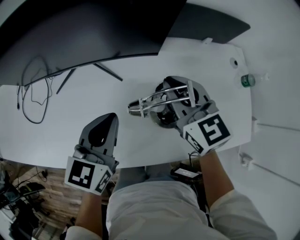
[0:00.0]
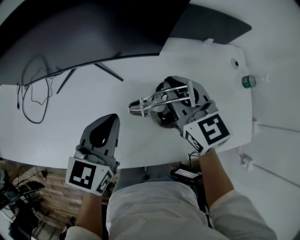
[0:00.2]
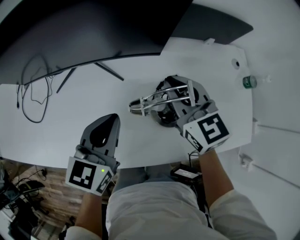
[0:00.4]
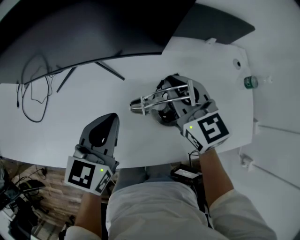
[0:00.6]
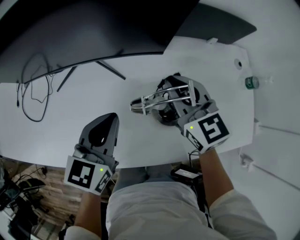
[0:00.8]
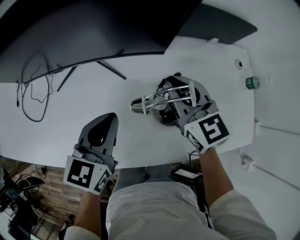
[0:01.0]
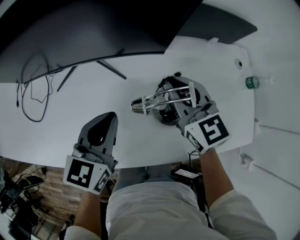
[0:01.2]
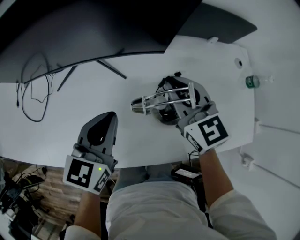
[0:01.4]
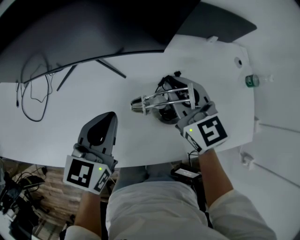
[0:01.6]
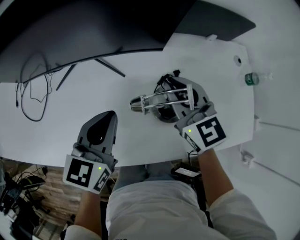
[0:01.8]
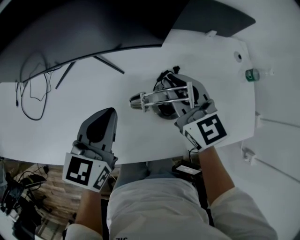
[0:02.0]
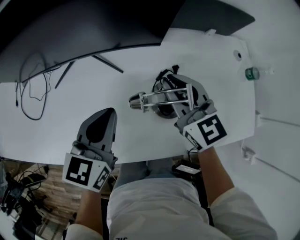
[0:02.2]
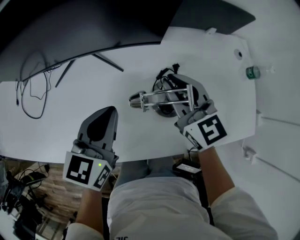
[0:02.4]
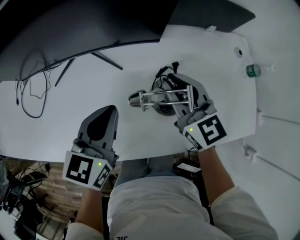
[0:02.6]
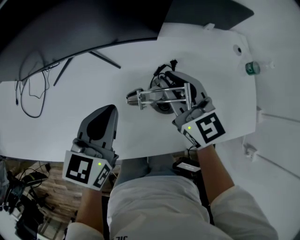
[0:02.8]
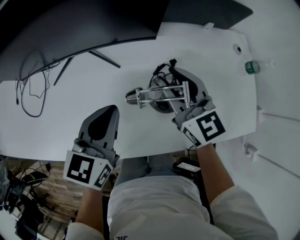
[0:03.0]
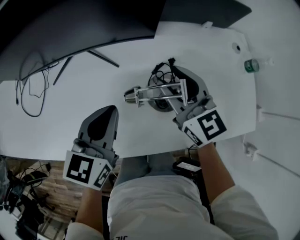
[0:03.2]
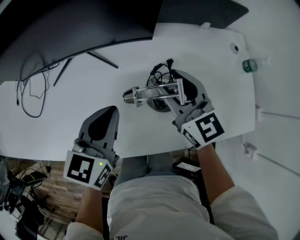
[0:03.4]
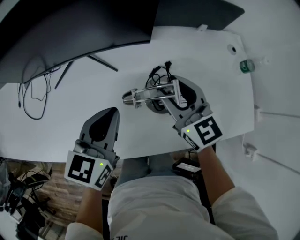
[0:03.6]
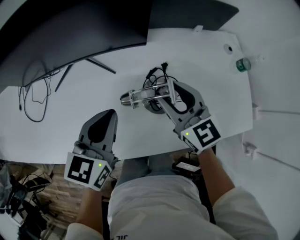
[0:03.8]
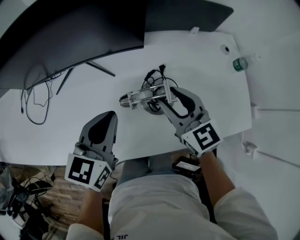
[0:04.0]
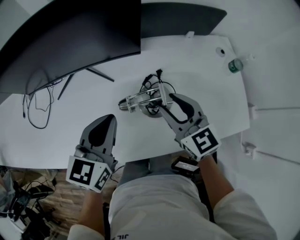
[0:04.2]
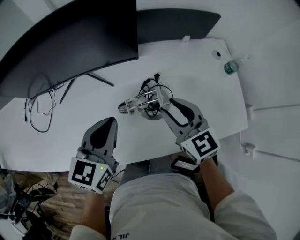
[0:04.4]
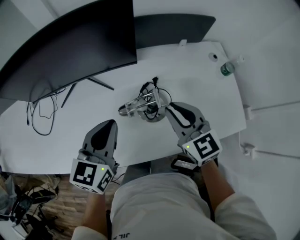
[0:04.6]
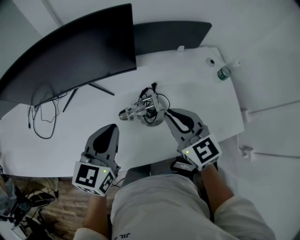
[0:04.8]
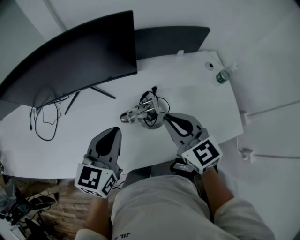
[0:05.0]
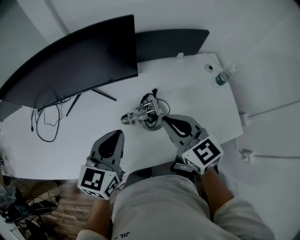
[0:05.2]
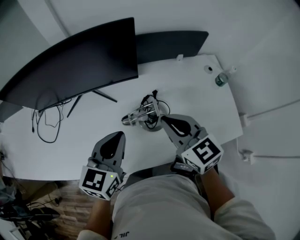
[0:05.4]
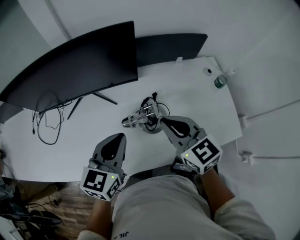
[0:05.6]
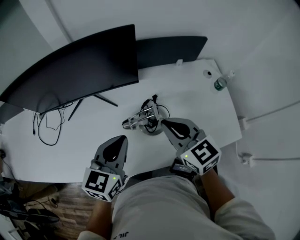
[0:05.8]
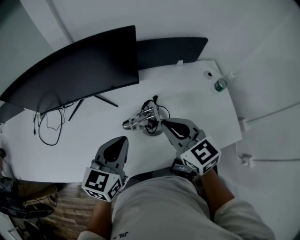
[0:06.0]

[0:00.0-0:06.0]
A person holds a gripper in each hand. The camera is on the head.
0:00.0 to 0:03.0: There are only small adjustments of the grippers.
0:03.0 to 0:04.4: The left gripper ends up roughly 5 cm from where it was. The right gripper heads backward and to the right, covering approximately 10 cm.
0:04.4 to 0:06.0: The right gripper shifts about 5 cm upward, and closes.

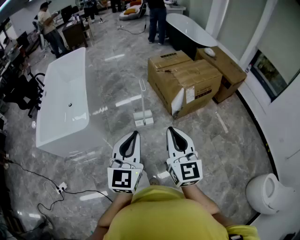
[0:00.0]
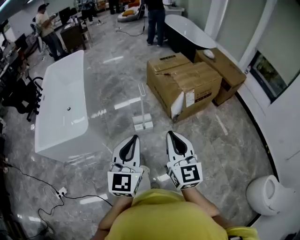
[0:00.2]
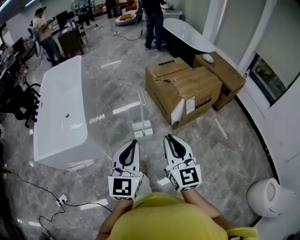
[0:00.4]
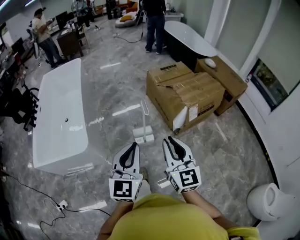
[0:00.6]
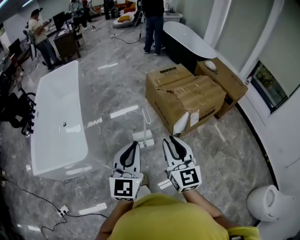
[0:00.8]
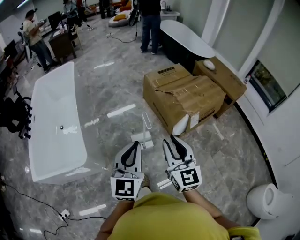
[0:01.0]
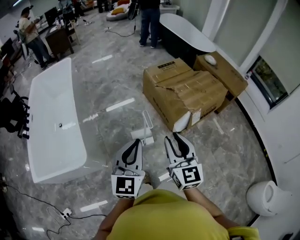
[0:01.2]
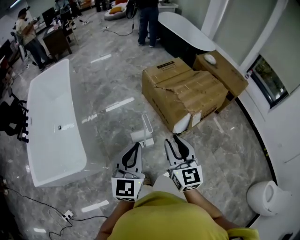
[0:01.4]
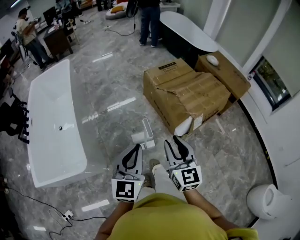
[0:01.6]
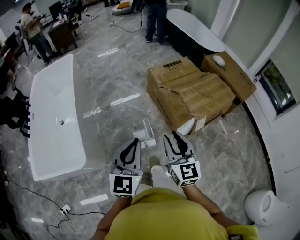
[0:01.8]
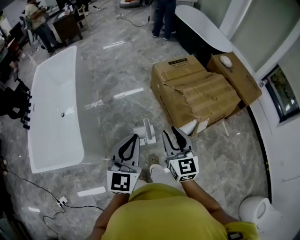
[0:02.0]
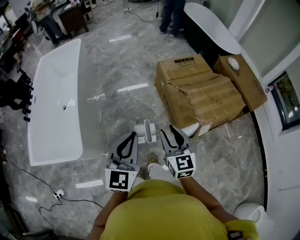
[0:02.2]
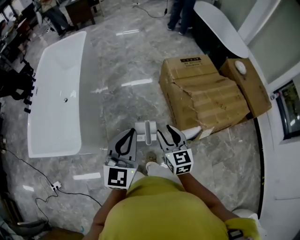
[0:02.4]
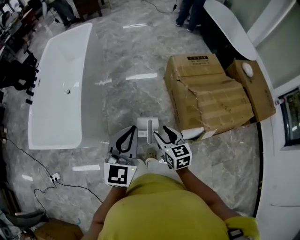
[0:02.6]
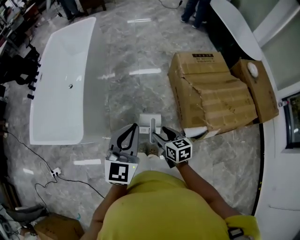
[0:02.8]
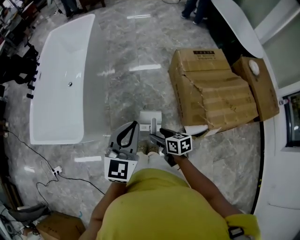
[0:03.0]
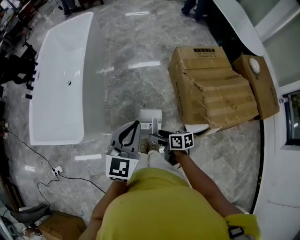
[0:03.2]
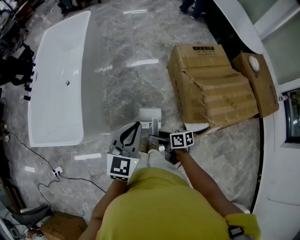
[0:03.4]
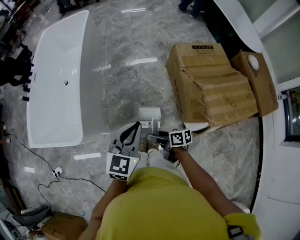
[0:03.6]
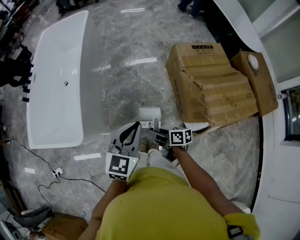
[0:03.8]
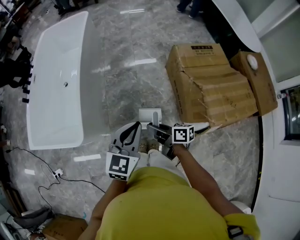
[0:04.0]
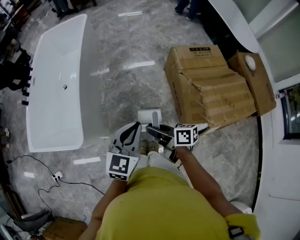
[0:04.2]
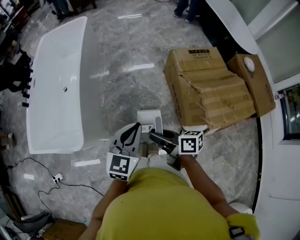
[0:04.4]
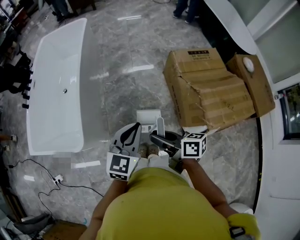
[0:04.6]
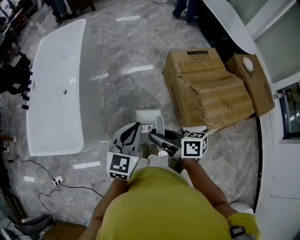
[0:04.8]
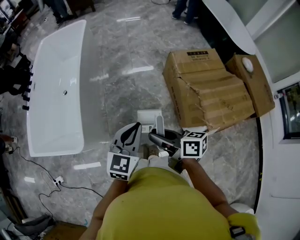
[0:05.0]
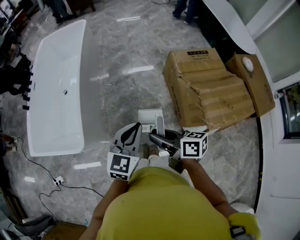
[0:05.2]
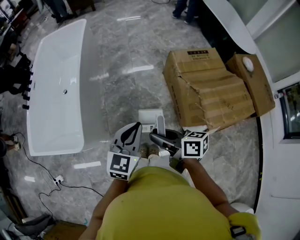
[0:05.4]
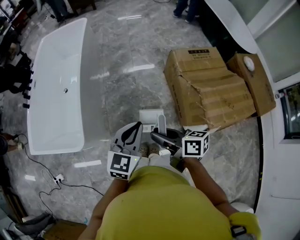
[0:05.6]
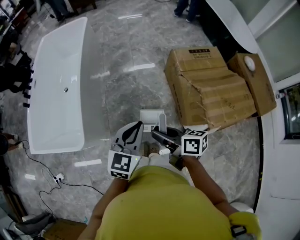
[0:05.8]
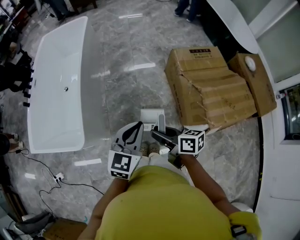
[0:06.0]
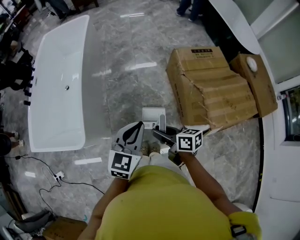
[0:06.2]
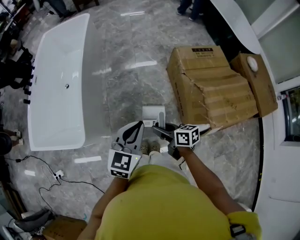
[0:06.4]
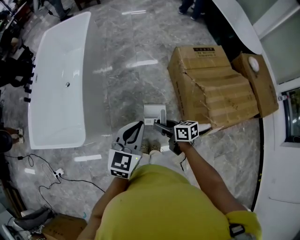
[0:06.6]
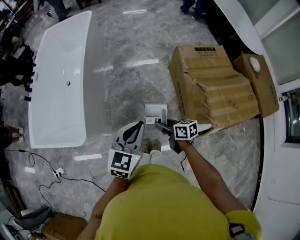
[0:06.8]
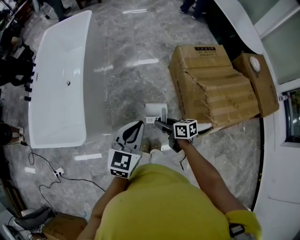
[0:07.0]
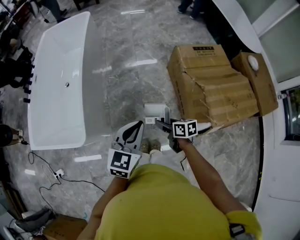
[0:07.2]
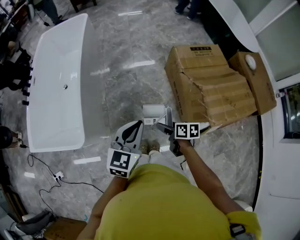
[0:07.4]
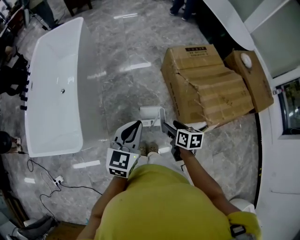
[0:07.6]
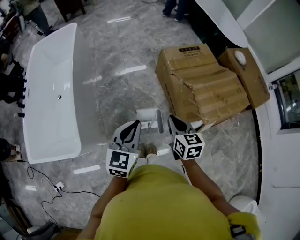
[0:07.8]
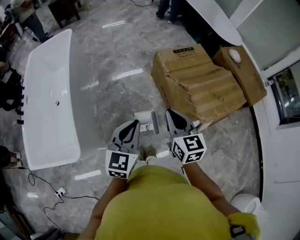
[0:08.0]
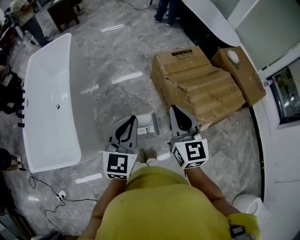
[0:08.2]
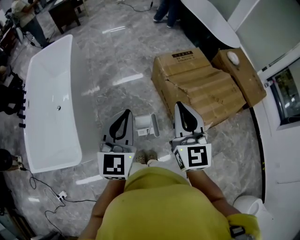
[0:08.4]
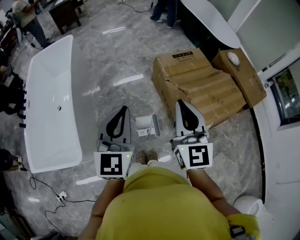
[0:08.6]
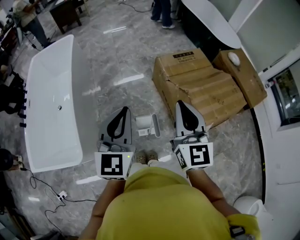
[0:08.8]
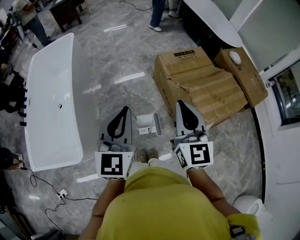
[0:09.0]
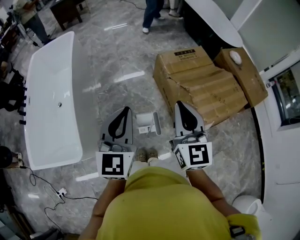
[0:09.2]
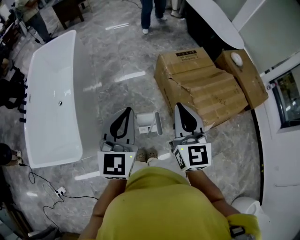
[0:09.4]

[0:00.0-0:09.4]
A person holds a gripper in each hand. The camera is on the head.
0:00.0 to 0:01.6: Both grippers travel together forward, some 30 cm. The right gripper opens its fingers.
0:01.6 to 0:03.2: The right gripper shifts roughly 25 cm downward, rotates about 80 degrees, and opens. Meanwhile the left gripper ends up some 20 cm from where it was.
0:03.2 to 0:04.8: The right gripper moves upward, roughly 20 cm, and closes up.
0:04.8 to 0:06.2: The right gripper shifts about 10 cm downward.
0:06.2 to 0:07.8: The right gripper is displaced to the right by some 10 cm, reaches roughly 10 cm downward, then returns, changes its angle by some 50 degrees, and opens and closes again.
0:07.8 to 0:09.4: The right gripper shifts roughly 20 cm upward, and changes its angle by approximately 30 degrees. The left gripper heads upward, covering roughly 10 cm.

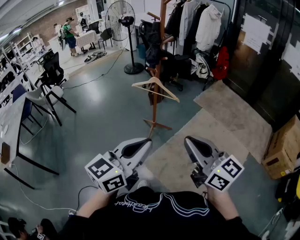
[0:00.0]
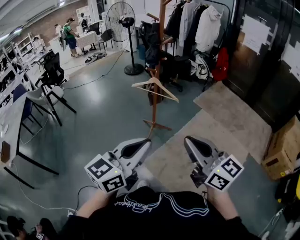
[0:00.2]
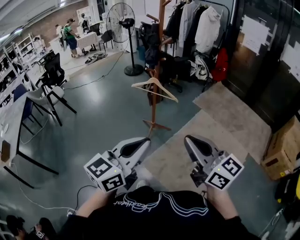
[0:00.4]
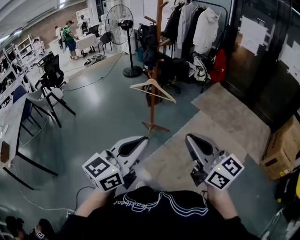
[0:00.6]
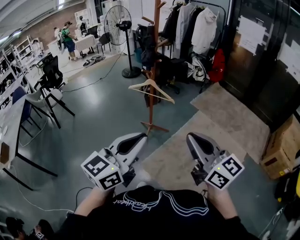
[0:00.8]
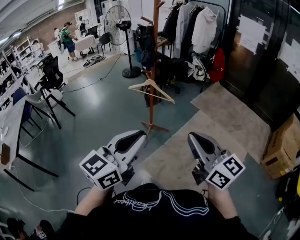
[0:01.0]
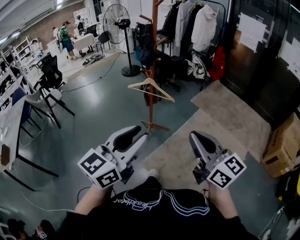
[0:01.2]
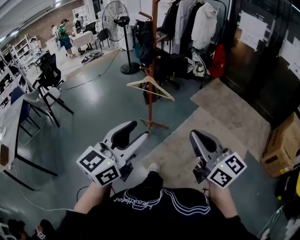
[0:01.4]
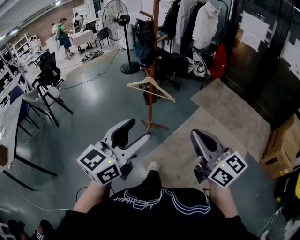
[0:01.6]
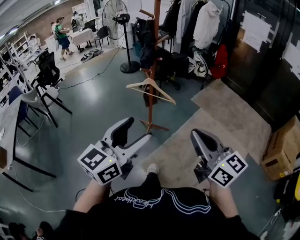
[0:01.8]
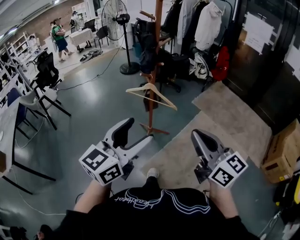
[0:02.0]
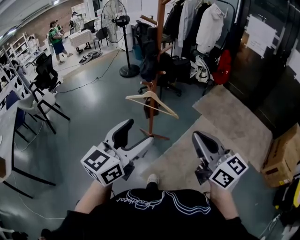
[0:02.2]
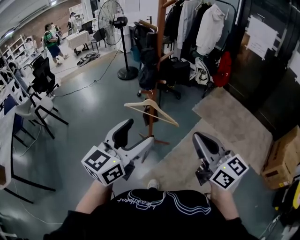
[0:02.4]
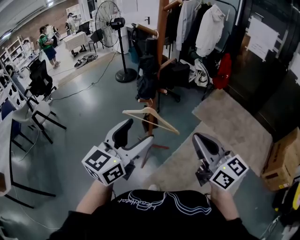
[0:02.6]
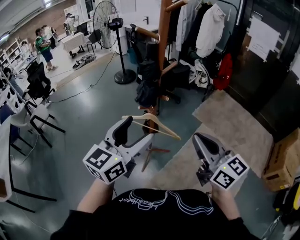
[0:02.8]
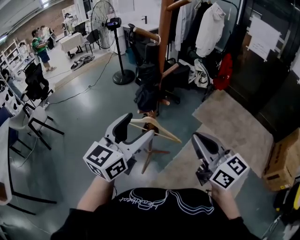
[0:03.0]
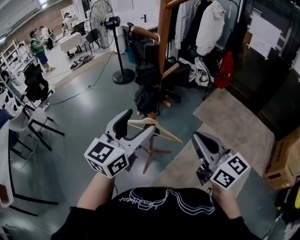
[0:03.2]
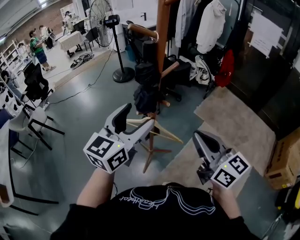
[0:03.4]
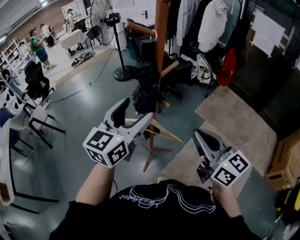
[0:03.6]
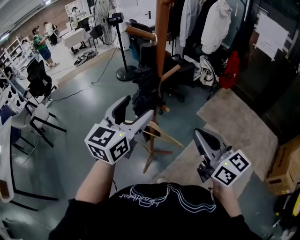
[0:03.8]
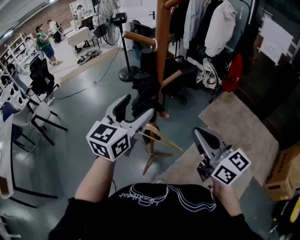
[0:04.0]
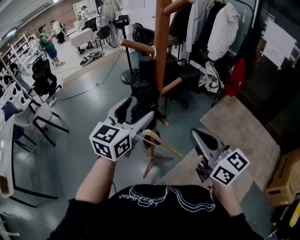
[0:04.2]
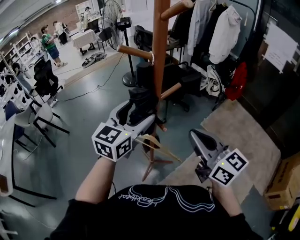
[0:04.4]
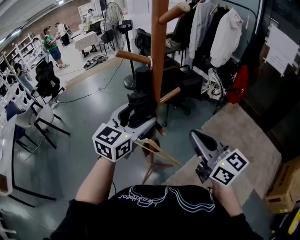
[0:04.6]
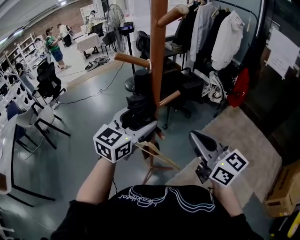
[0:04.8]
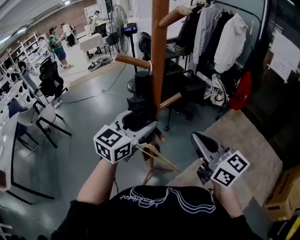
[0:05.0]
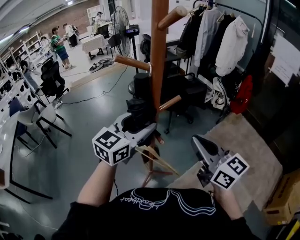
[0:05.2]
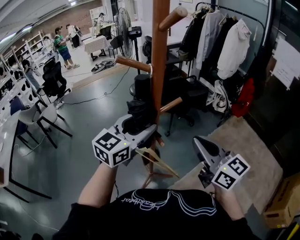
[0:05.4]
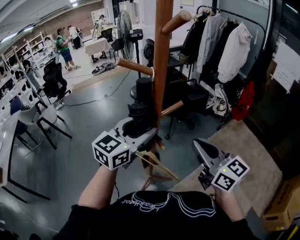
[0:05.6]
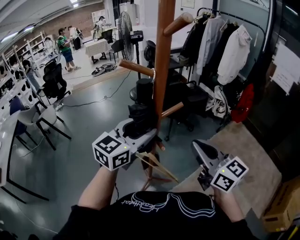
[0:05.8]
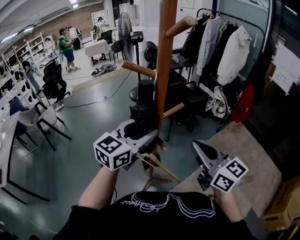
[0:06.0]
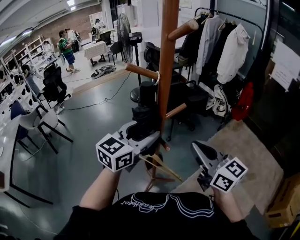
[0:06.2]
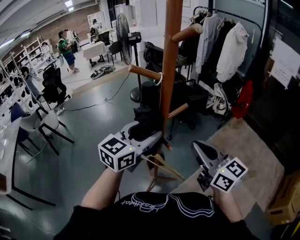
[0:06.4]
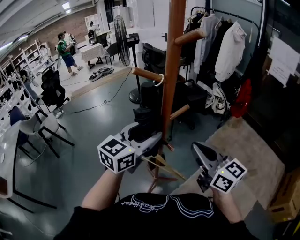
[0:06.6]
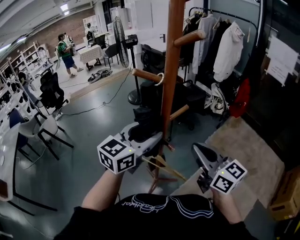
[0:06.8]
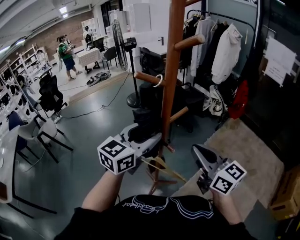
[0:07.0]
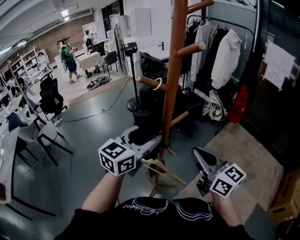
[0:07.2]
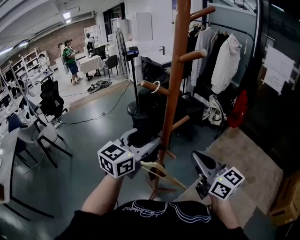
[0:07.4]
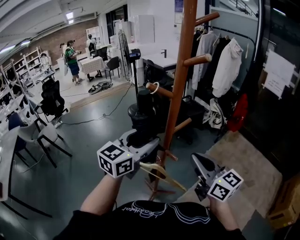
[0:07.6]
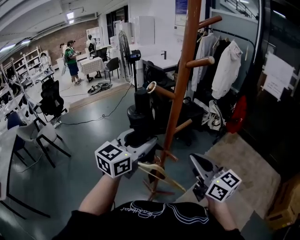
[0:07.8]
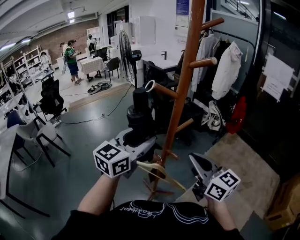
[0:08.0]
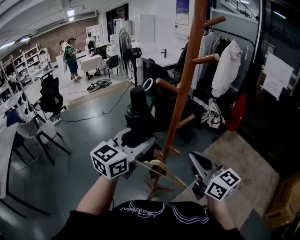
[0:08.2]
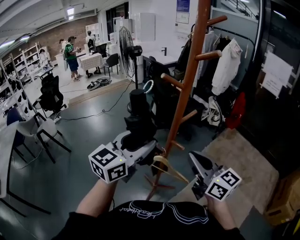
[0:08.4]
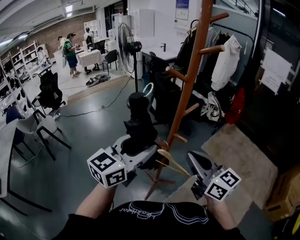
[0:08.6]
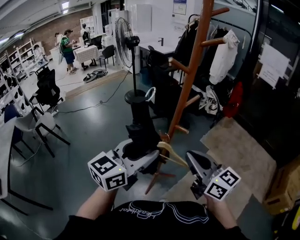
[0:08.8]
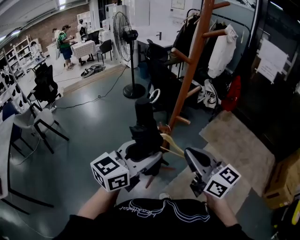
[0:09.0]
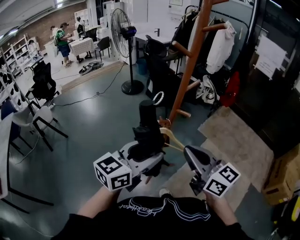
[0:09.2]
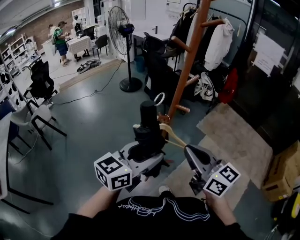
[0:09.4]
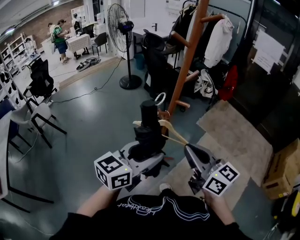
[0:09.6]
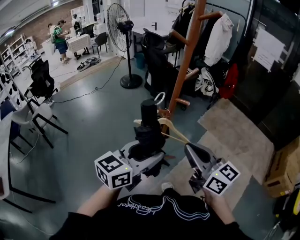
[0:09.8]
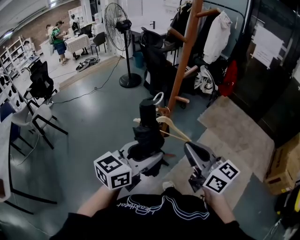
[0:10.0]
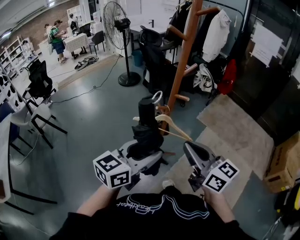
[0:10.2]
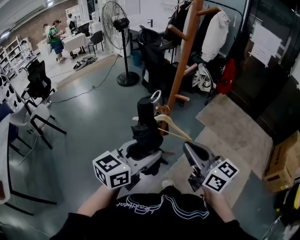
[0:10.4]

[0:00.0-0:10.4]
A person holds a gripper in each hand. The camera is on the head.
0:00.0 to 0:01.4: The left gripper opens its fingers. Meanwhile the right gripper changes place by about 5 cm.
0:01.4 to 0:03.0: The grippers both shift forward by roughly 35 cm. The left gripper opens.
0:03.0 to 0:04.4: The two grippers go approximately 15 cm forward.
0:04.4 to 0:07.4: The grippers stay close to where they were, moving slightly.
0:07.4 to 0:09.0: The right gripper goes some 15 cm backward and to the left, while the left gripper travels backward by some 20 cm.
0:09.0 to 0:10.4: The right gripper moves backward, some 5 cm. The left gripper moves backward and downward, some 10 cm.
